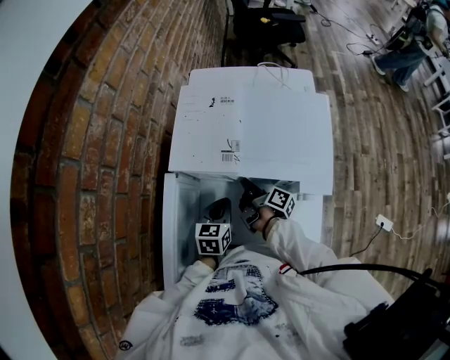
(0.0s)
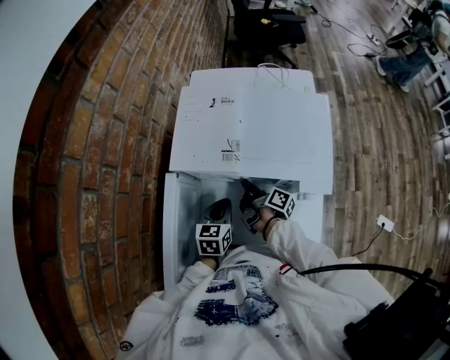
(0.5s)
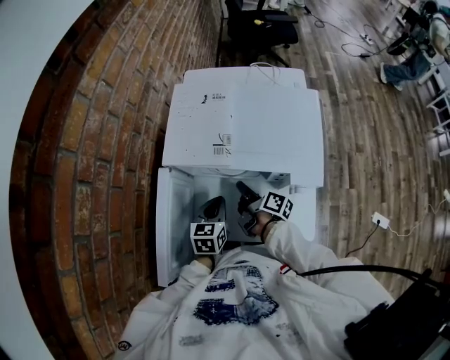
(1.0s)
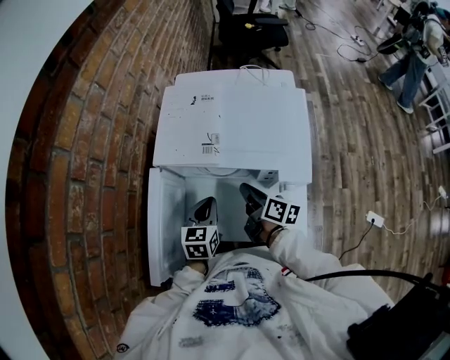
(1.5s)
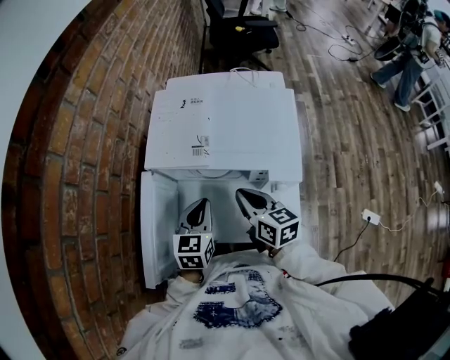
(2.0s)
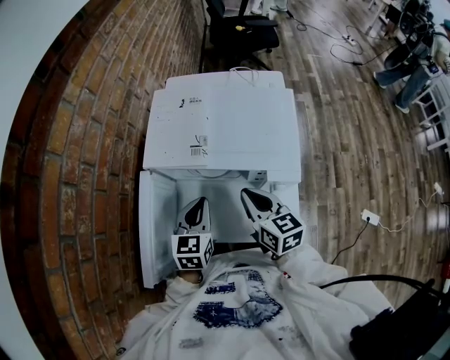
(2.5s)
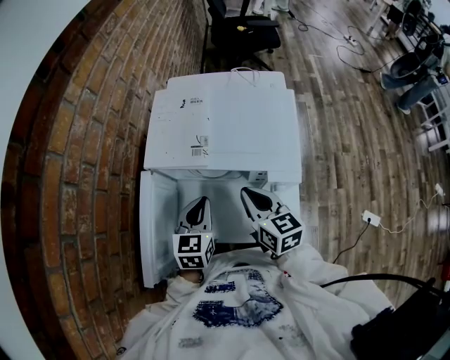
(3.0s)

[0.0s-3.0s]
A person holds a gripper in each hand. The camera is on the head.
1.5s to 3.0s: The left gripper goes roughly 5 cm upward.

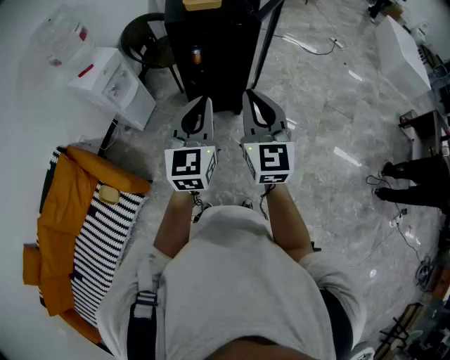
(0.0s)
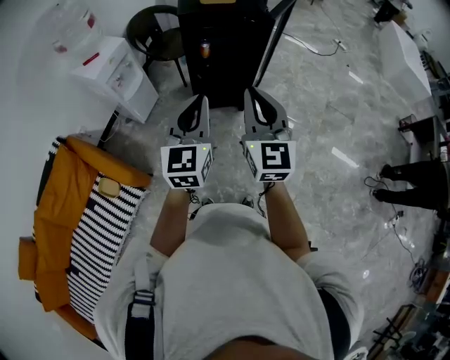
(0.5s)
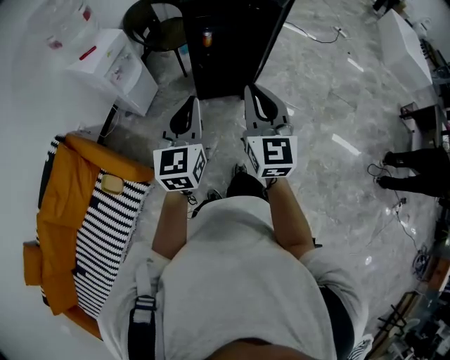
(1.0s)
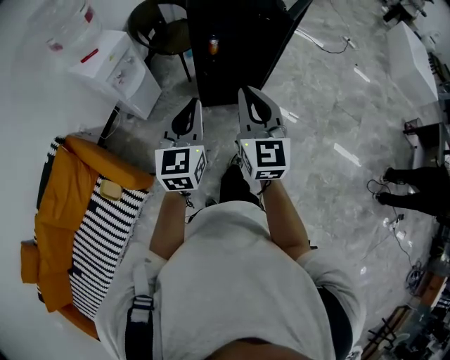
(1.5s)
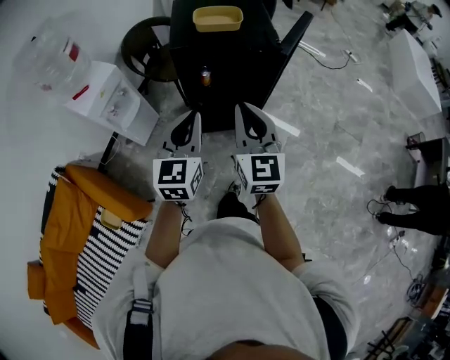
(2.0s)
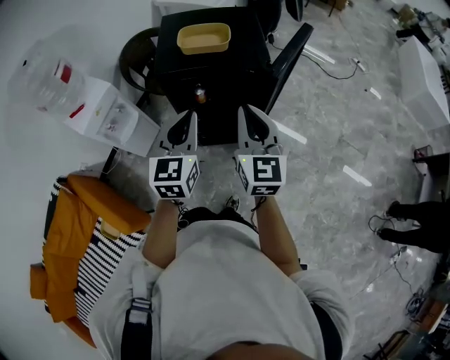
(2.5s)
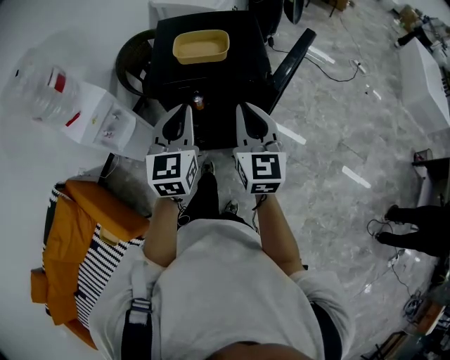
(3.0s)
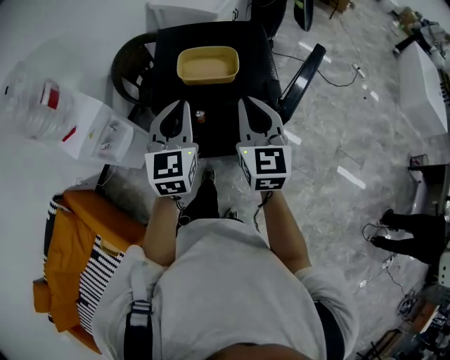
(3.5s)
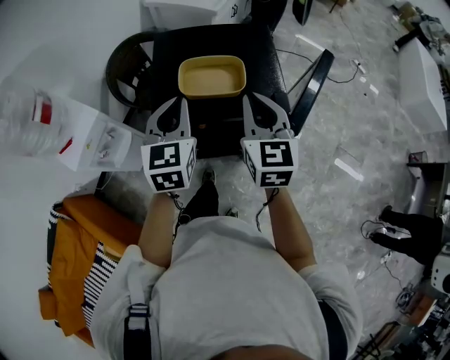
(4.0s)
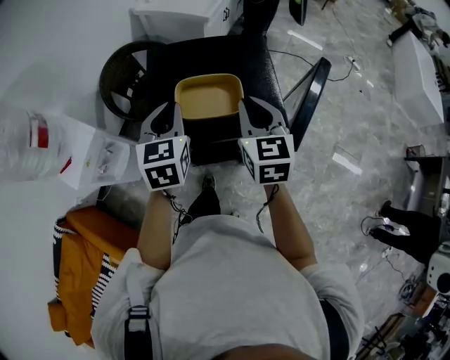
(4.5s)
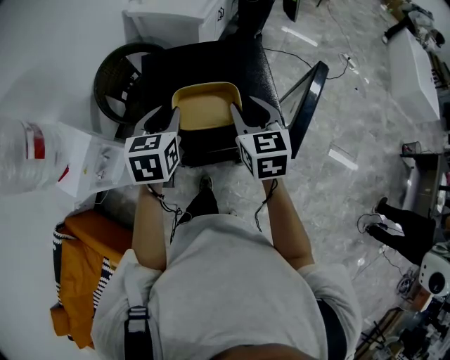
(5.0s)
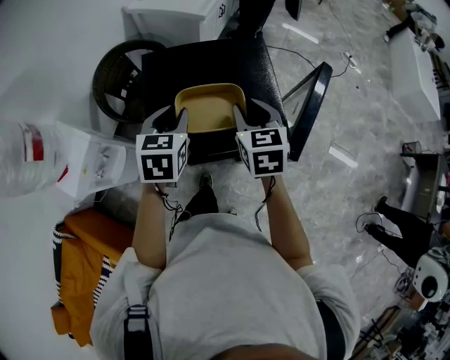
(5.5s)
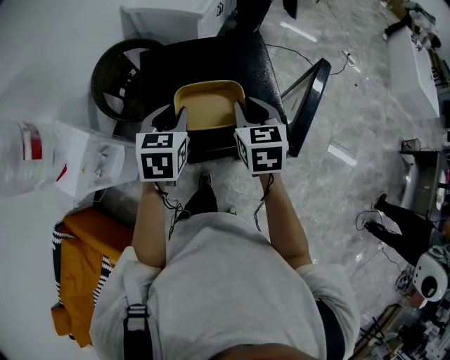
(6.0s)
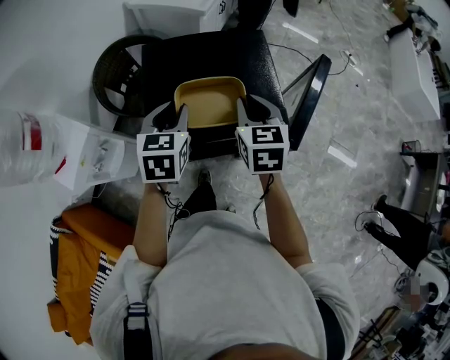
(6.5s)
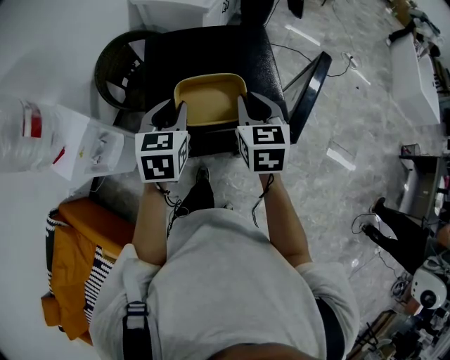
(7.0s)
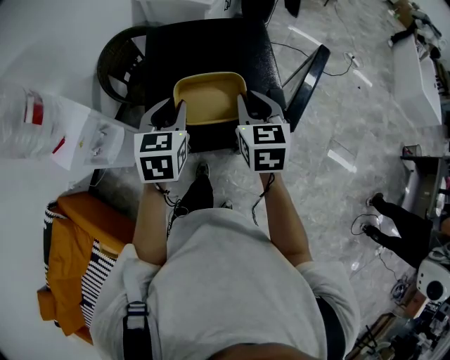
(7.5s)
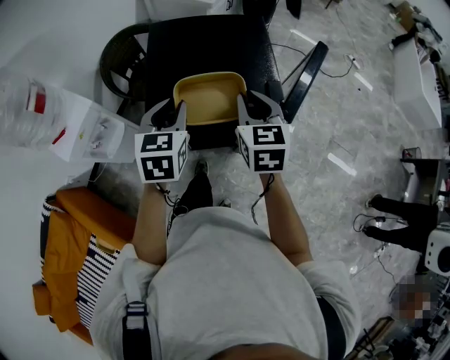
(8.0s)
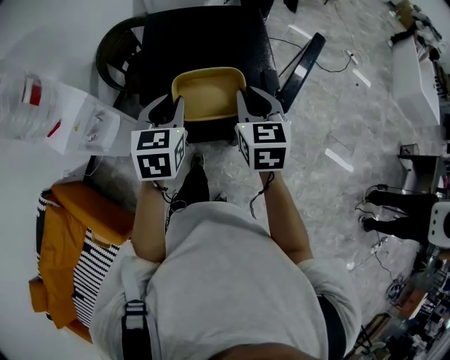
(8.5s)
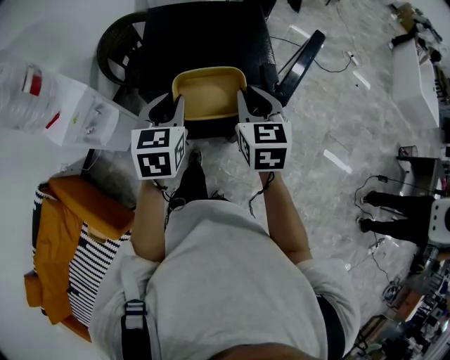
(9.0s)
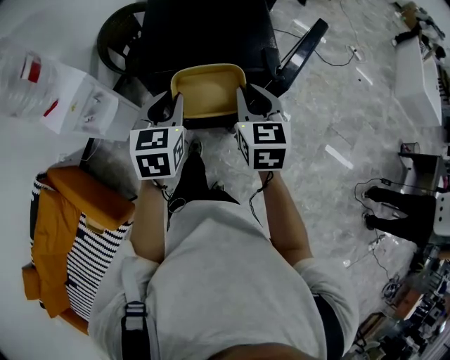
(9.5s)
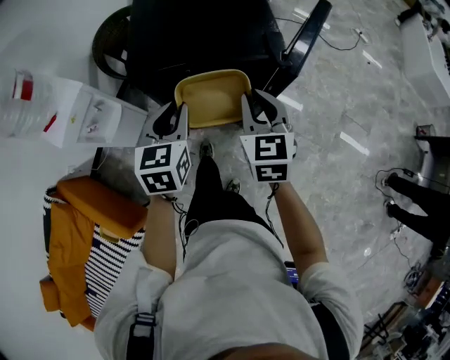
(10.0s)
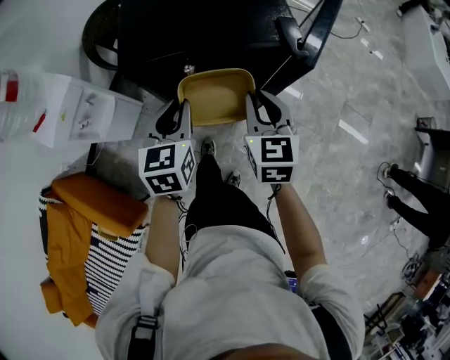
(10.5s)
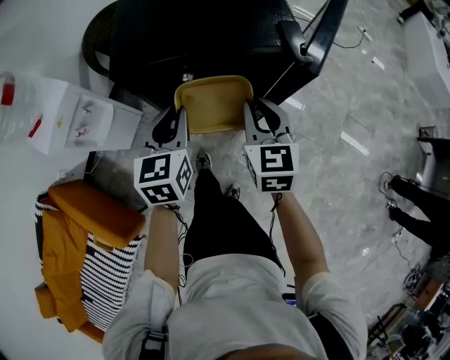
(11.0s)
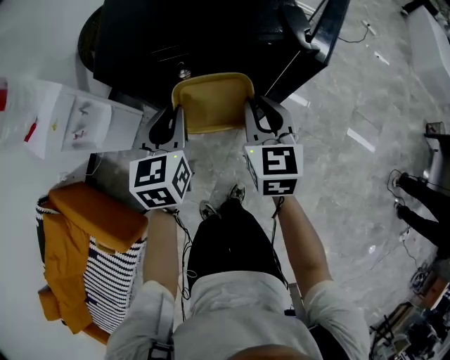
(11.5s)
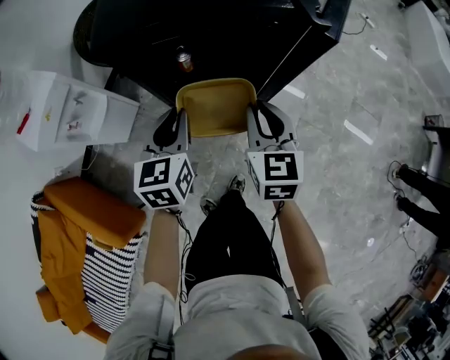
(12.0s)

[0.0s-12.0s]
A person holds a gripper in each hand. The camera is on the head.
0.0s to 2.0s: Both grippers move forward, approximately 20 cm.
2.0s to 4.0s: The two grippers go roughly 30 cm forward.
4.0s to 6.0s: The right gripper travels forward and downward by roughly 10 cm, and turns by roughly 20 degrees. The left gripper moves forward, approximately 10 cm, turns by approximately 20 degrees, and opens up.
6.0s to 8.0s: The two grippers go approximately 10 cm backward.
8.0s to 10.0s: The two grippers go roughly 10 cm backward and downward.
10.0s to 12.0s: The grippers both shift downward by about 15 cm.

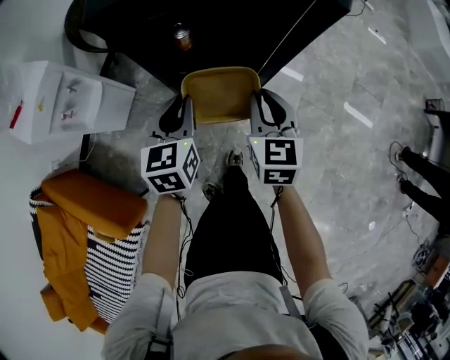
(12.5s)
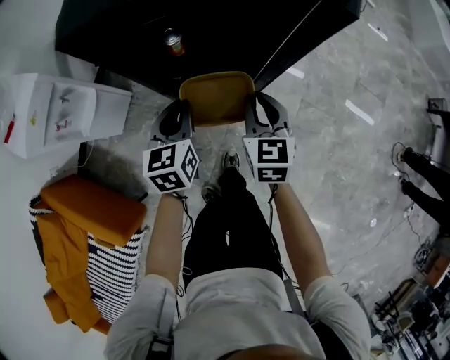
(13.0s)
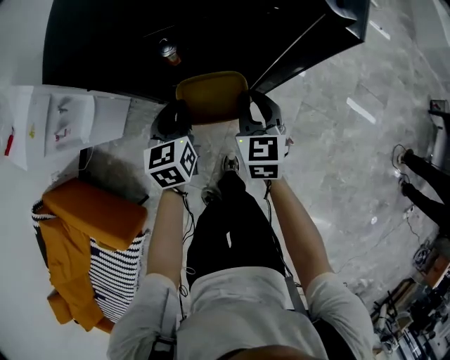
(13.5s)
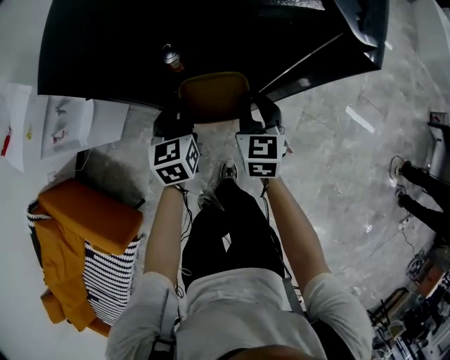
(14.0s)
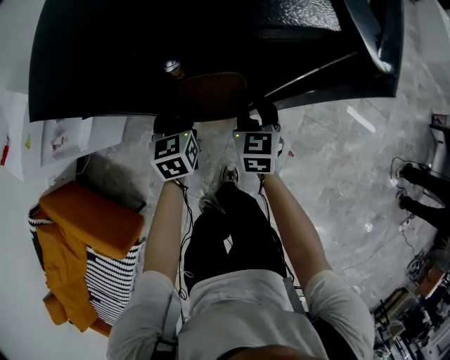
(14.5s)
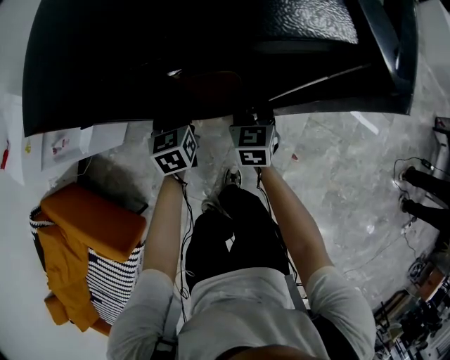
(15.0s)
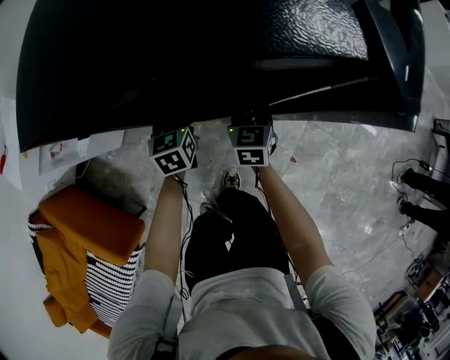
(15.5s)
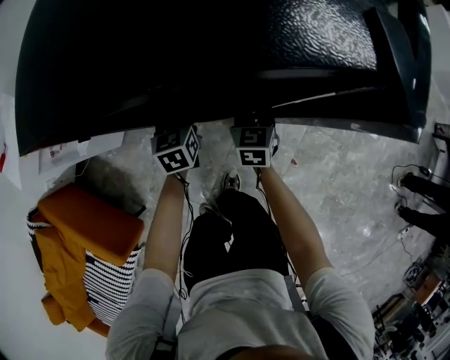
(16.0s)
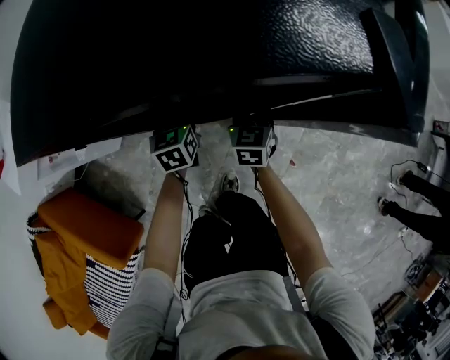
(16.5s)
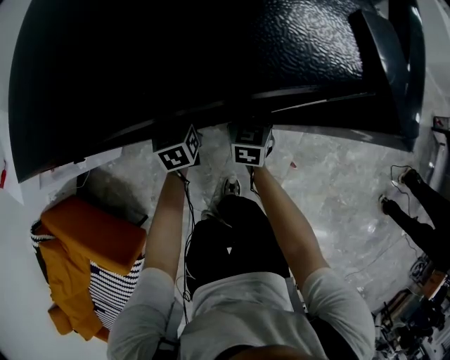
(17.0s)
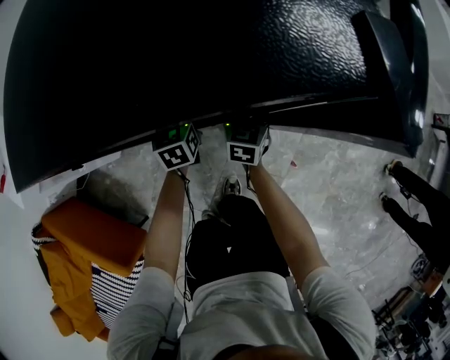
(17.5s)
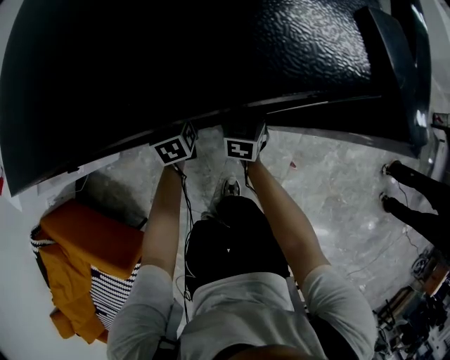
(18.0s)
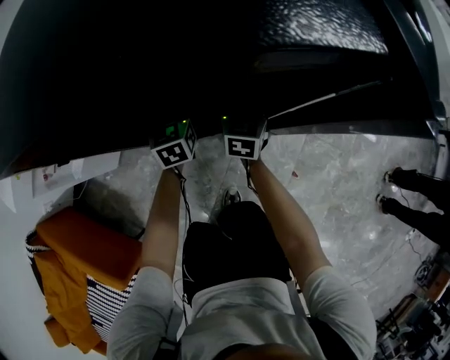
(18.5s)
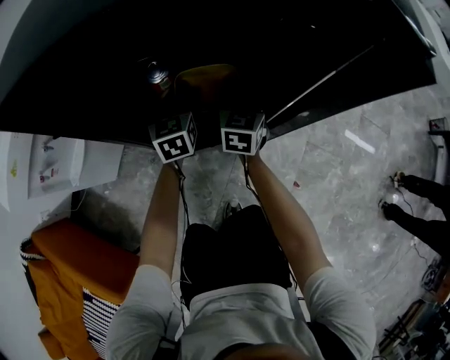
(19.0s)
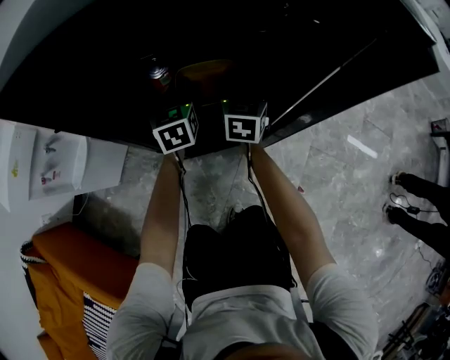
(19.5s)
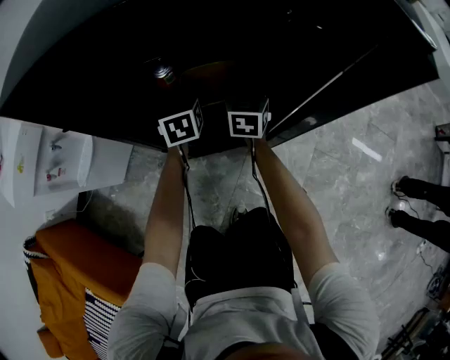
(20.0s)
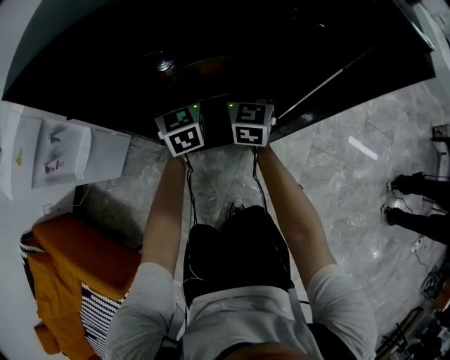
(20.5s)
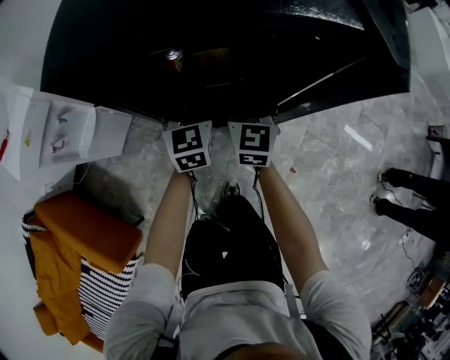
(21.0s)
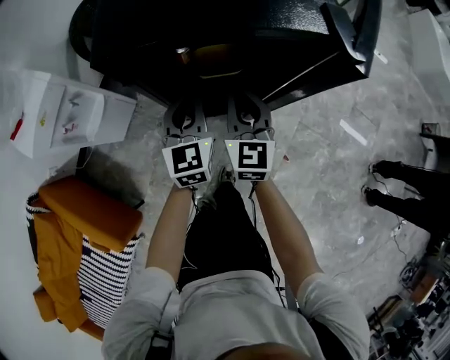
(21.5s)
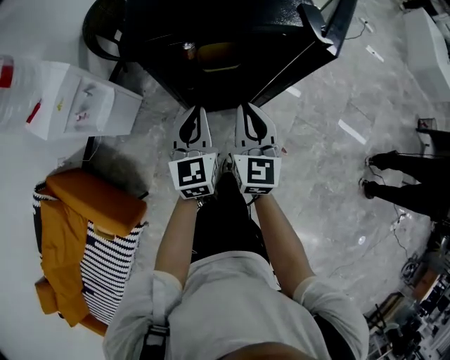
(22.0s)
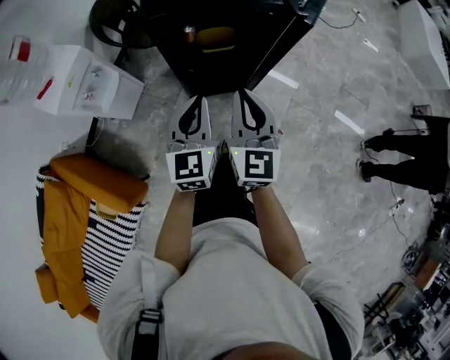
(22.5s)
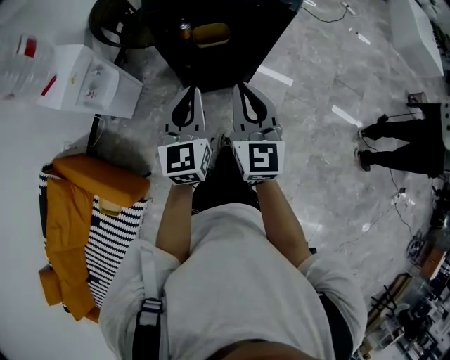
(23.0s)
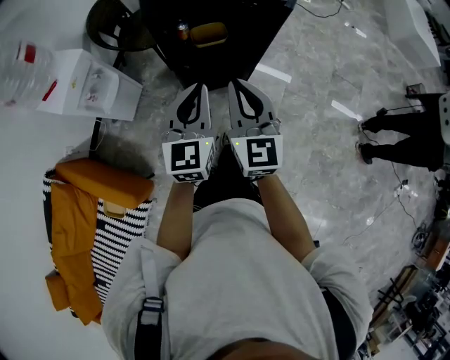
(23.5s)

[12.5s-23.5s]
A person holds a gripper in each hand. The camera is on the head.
12.5s to 14.5s: The grippers both shift forward and downward by about 20 cm.
14.5s to 16.0s: The left gripper ends up some 5 cm from where it was. Meanwhile the right gripper moves downward, approximately 5 cm.
16.0s to 18.0s: The two grippers go roughly 5 cm forward.
18.0s to 20.0s: The right gripper ends up approximately 5 cm from where it was.
20.0s to 21.5s: Both grippers travel together upward and backward, approximately 25 cm.
21.5s to 23.5s: The grippers both shift backward and upward by roughly 35 cm.

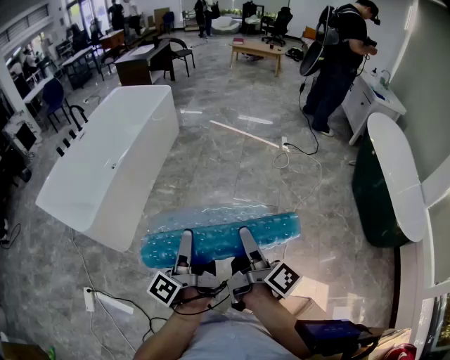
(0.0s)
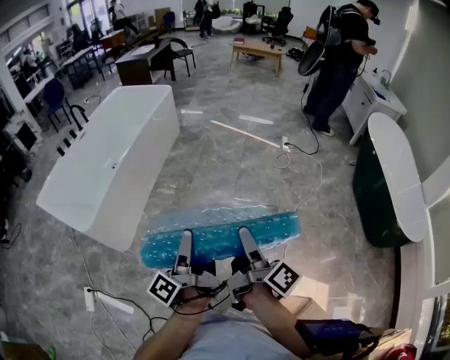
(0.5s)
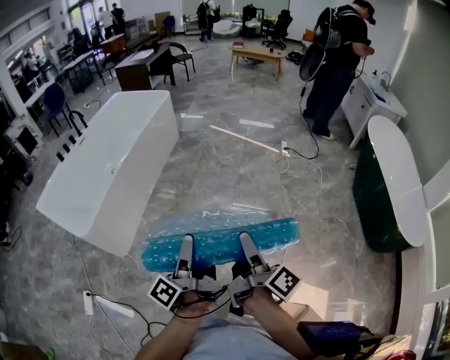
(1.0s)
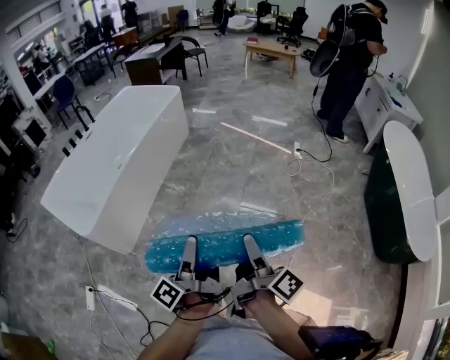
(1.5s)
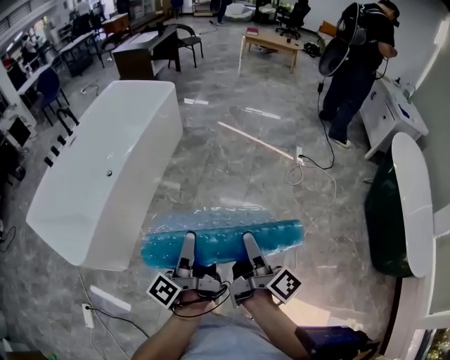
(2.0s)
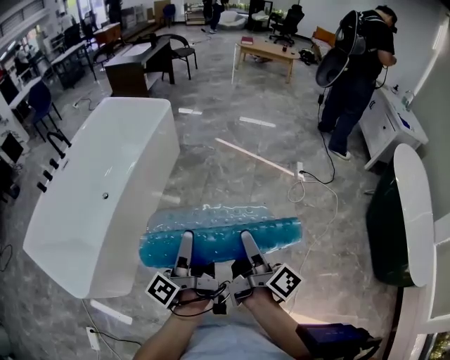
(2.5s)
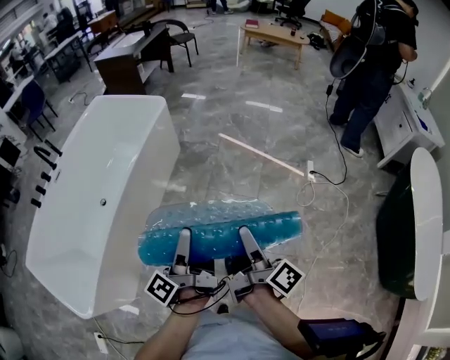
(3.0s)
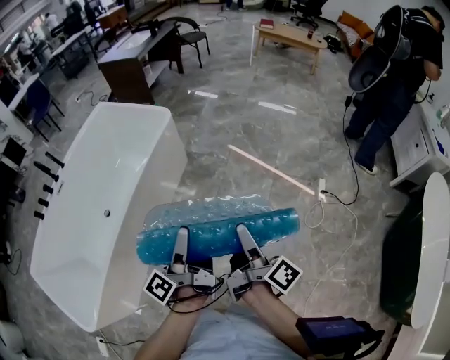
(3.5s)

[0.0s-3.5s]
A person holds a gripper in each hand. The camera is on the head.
0.0s to 2.0s: The grippers both shift forward by some 30 cm.
2.0s to 3.5s: The two grippers travel together, forward, roughly 50 cm.
